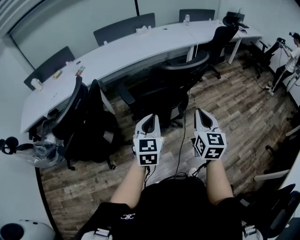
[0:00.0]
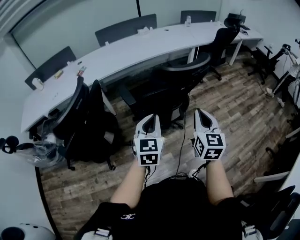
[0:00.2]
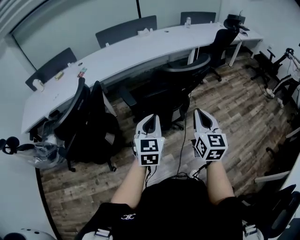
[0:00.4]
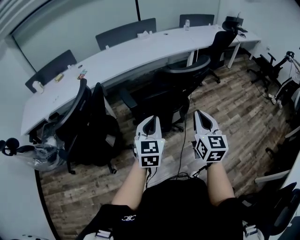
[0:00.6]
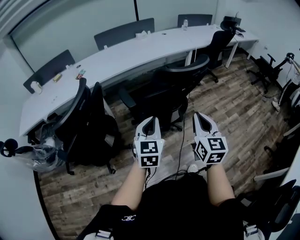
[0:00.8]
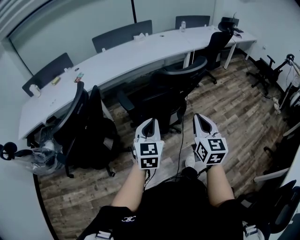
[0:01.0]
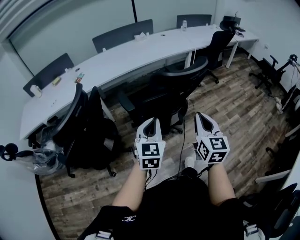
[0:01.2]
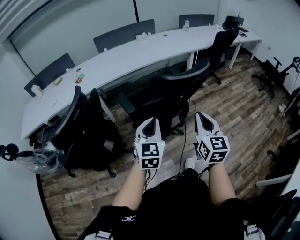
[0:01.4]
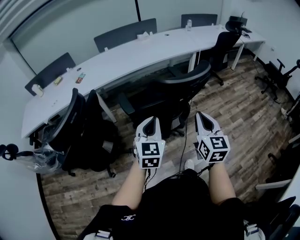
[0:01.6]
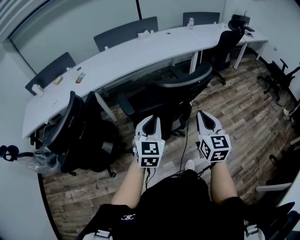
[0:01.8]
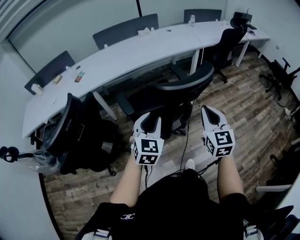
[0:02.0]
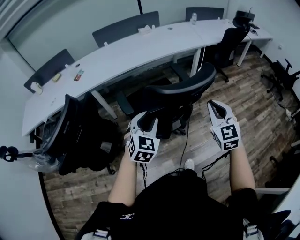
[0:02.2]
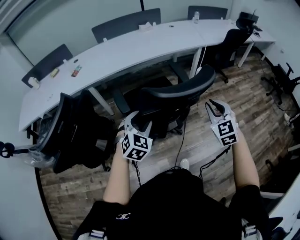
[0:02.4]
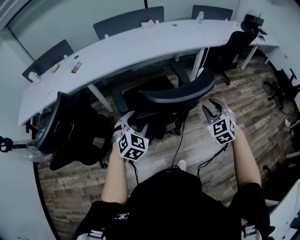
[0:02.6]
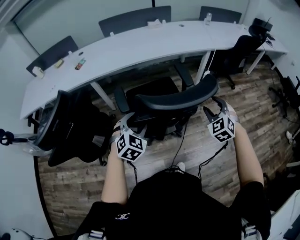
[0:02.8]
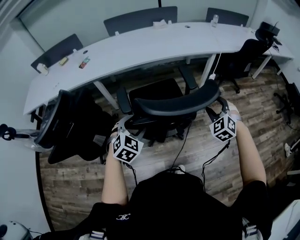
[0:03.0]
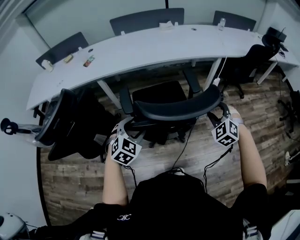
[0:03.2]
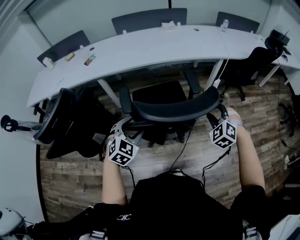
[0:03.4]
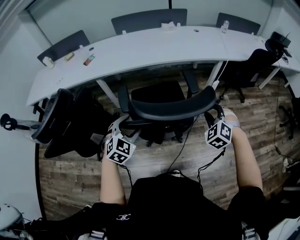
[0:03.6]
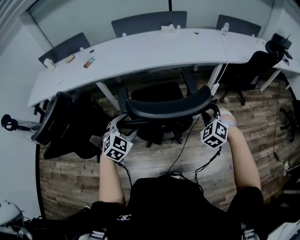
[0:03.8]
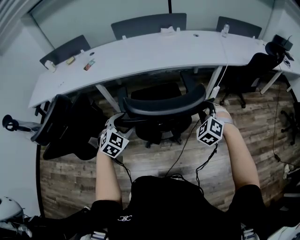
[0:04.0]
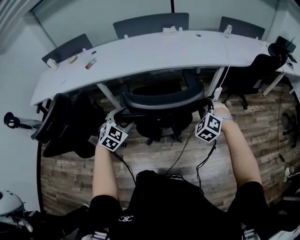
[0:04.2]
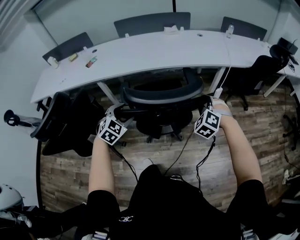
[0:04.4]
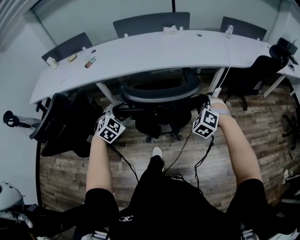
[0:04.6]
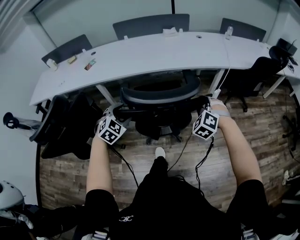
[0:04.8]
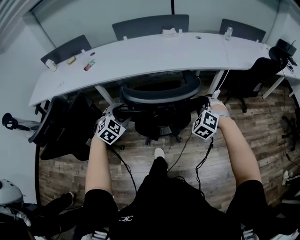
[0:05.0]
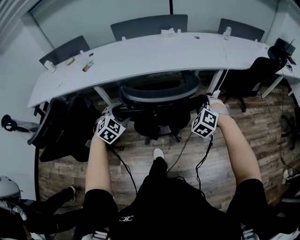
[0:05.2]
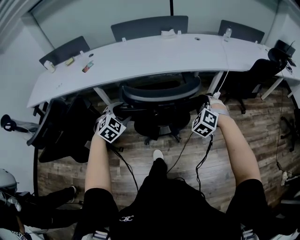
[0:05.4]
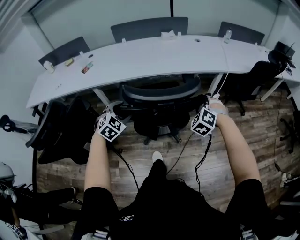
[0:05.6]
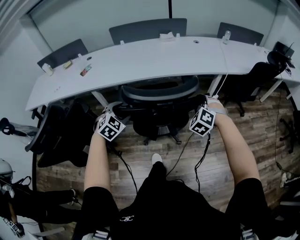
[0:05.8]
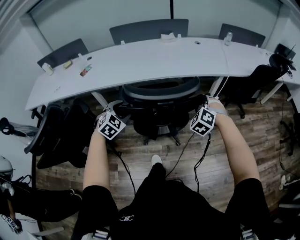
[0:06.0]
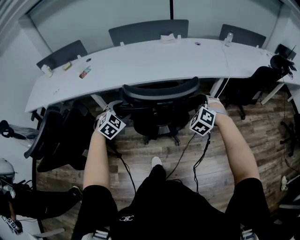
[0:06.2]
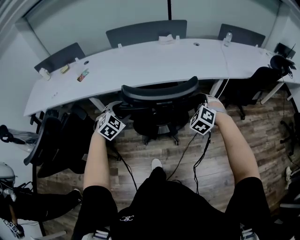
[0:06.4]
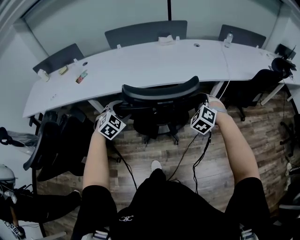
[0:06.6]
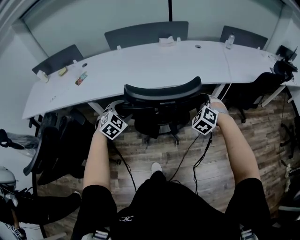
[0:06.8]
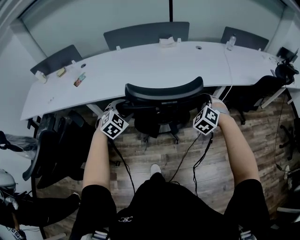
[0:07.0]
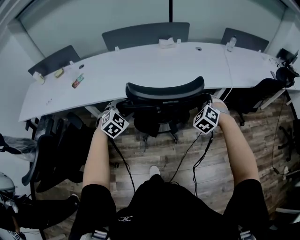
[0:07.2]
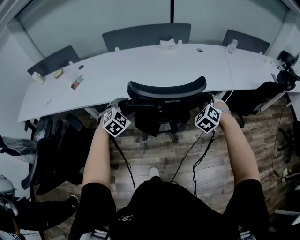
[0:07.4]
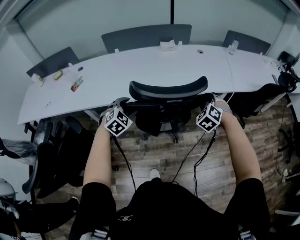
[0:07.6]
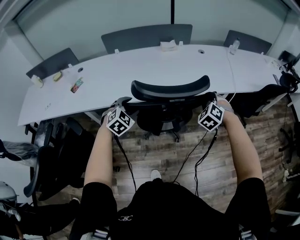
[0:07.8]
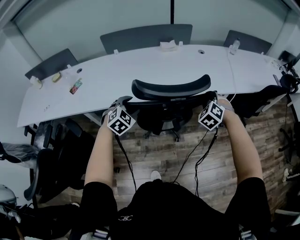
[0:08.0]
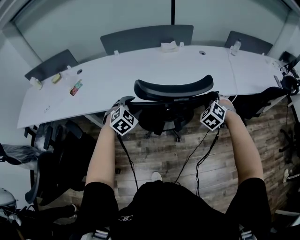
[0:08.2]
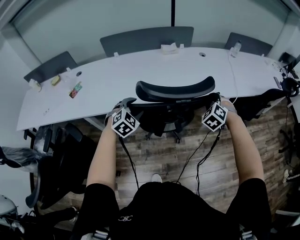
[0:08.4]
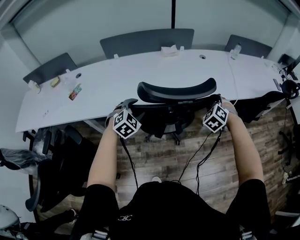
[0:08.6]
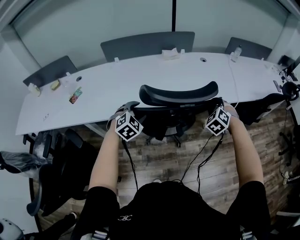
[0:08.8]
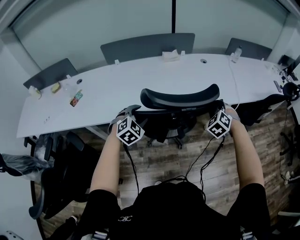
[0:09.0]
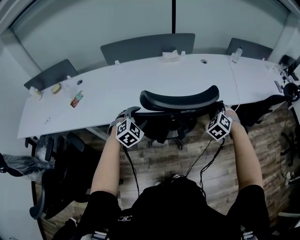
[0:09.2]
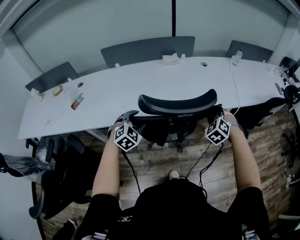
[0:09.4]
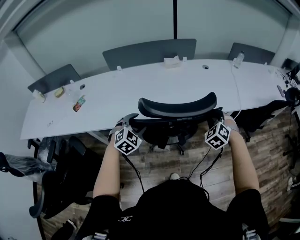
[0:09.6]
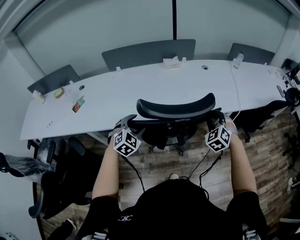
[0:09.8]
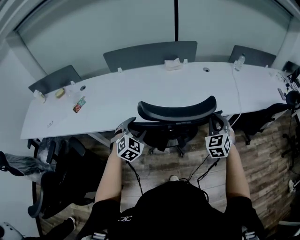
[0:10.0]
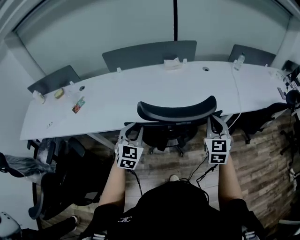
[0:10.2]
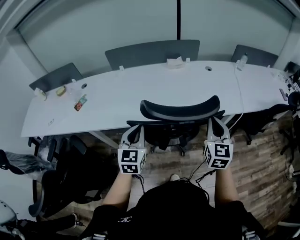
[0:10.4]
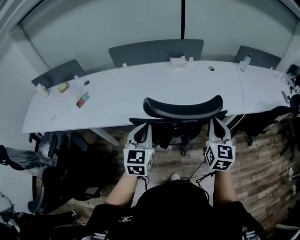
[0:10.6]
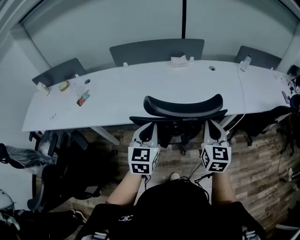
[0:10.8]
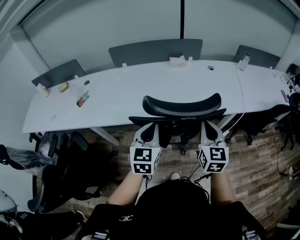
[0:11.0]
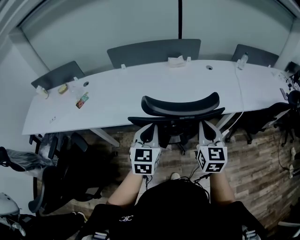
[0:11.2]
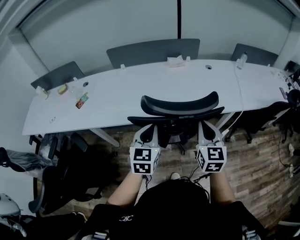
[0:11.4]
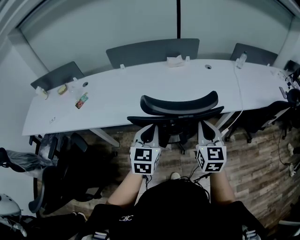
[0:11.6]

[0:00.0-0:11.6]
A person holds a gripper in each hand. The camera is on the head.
0:00.0 to 0:01.4: The grippers make only small movements.
0:01.4 to 0:02.8: The right gripper travels forward and to the right by some 30 cm, rolls counterclockwise, seen from behind, by approximately 50 degrees, and opens its fingers; the left gripper is displaced forward and downward by about 20 cm, changes its angle by roughly 30 degrees, and opens up.
0:02.8 to 0:04.4: The grippers both shift forward by roughly 15 cm. The right gripper changes its angle by roughly 20 degrees, and closes up.
0:04.4 to 0:05.8: The grippers both shift forward by some 10 cm.
0:05.8 to 0:07.2: Both grippers move forward, roughly 20 cm.
0:07.2 to 0:08.8: The grippers both shift forward by roughly 10 cm.
0:08.8 to 0:10.2: The left gripper travels upward by approximately 5 cm, turns by approximately 30 degrees, and closes, while the right gripper is displaced upward by some 10 cm, rolls clockwise, seen from behind, by about 40 degrees, and closes its fingers.
0:10.2 to 0:11.6: The left gripper moves to the right, some 5 cm, and closes its fingers, while the right gripper travels backward and to the left by approximately 10 cm.

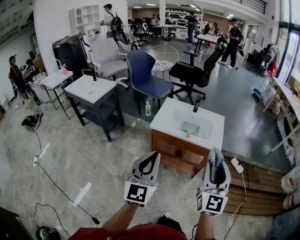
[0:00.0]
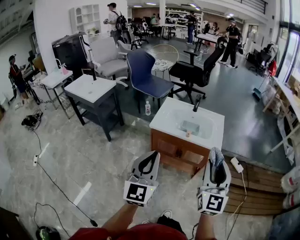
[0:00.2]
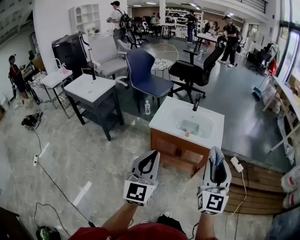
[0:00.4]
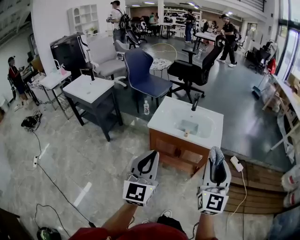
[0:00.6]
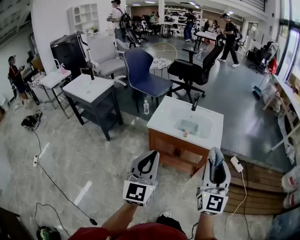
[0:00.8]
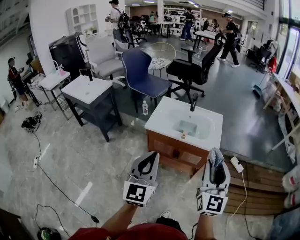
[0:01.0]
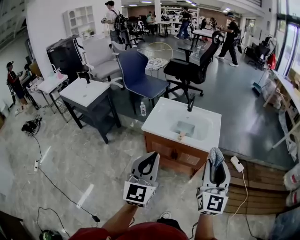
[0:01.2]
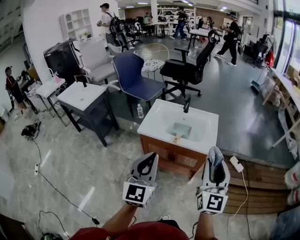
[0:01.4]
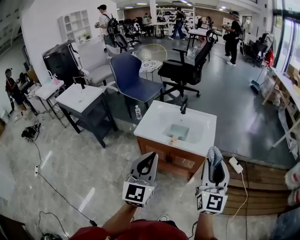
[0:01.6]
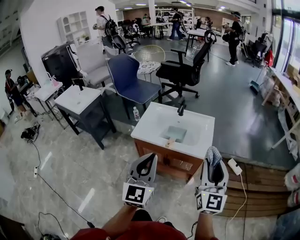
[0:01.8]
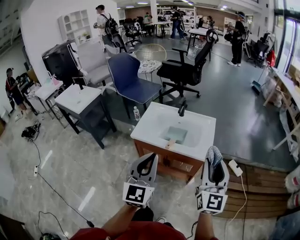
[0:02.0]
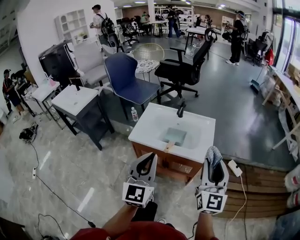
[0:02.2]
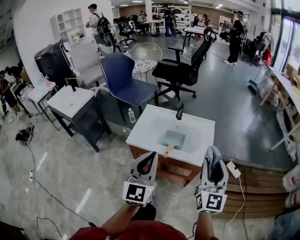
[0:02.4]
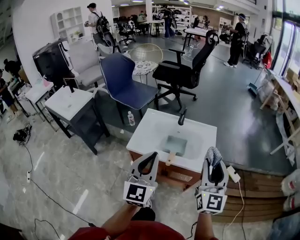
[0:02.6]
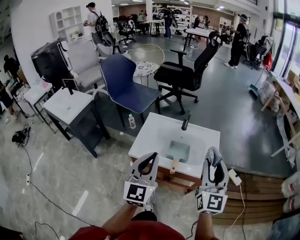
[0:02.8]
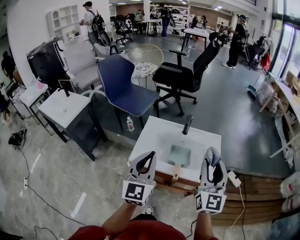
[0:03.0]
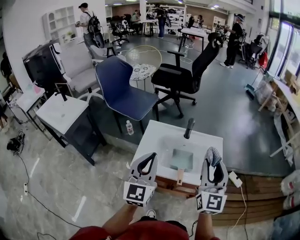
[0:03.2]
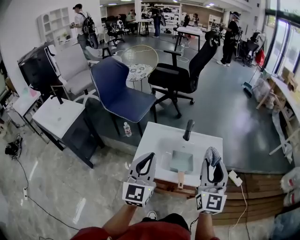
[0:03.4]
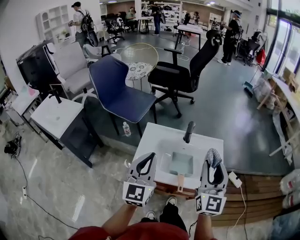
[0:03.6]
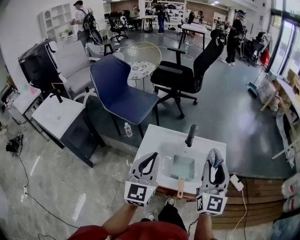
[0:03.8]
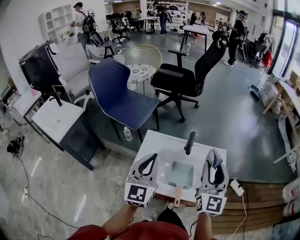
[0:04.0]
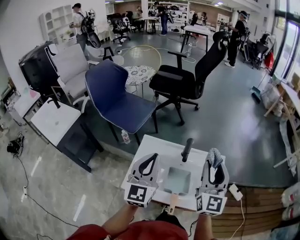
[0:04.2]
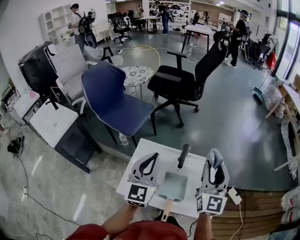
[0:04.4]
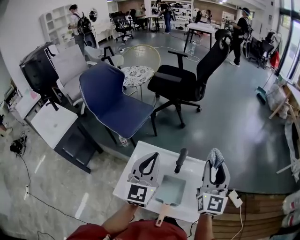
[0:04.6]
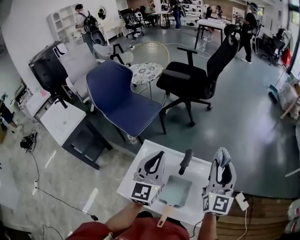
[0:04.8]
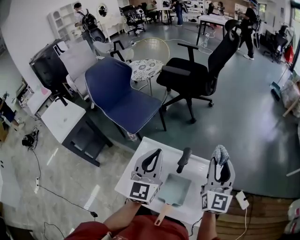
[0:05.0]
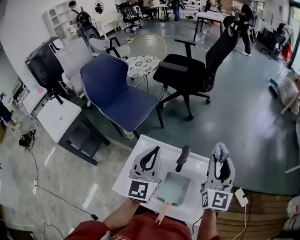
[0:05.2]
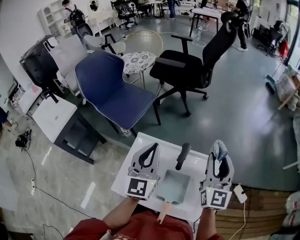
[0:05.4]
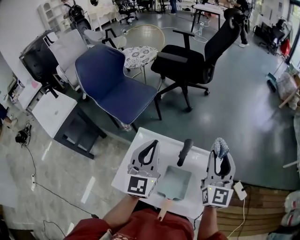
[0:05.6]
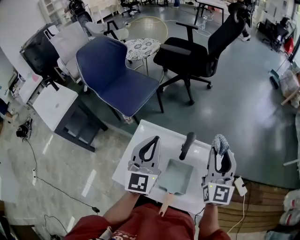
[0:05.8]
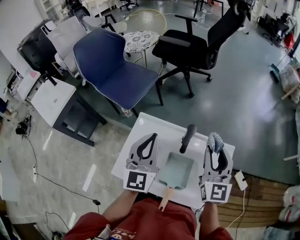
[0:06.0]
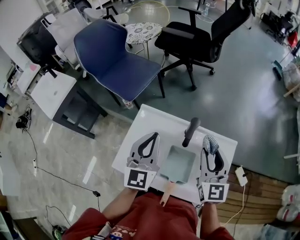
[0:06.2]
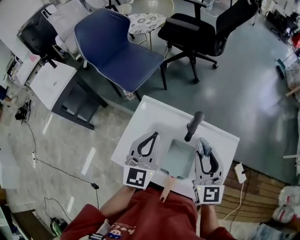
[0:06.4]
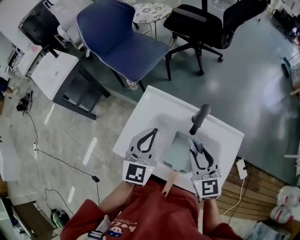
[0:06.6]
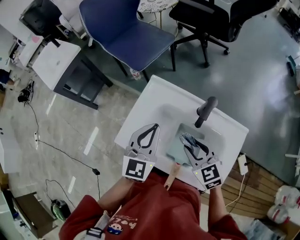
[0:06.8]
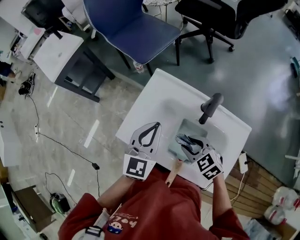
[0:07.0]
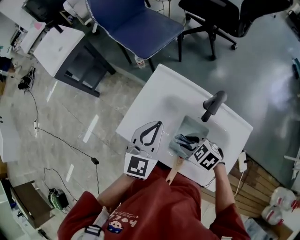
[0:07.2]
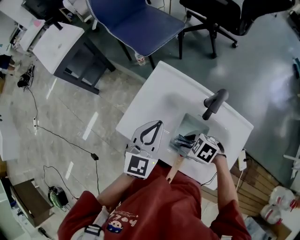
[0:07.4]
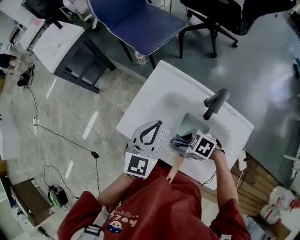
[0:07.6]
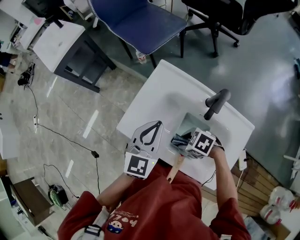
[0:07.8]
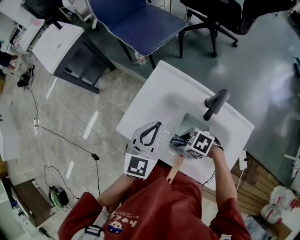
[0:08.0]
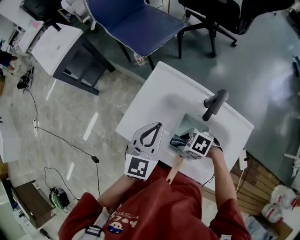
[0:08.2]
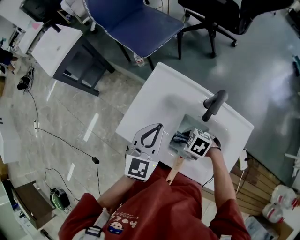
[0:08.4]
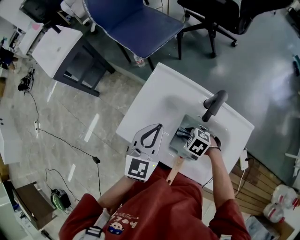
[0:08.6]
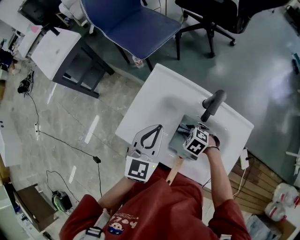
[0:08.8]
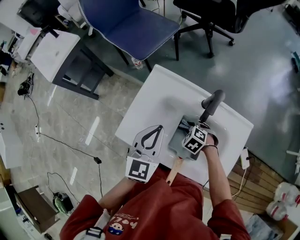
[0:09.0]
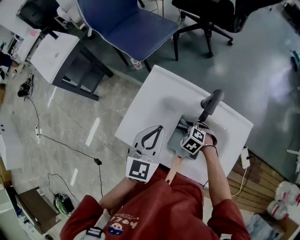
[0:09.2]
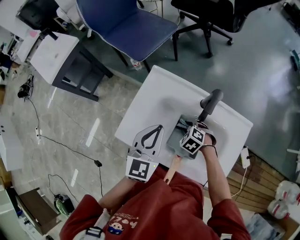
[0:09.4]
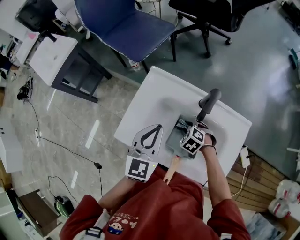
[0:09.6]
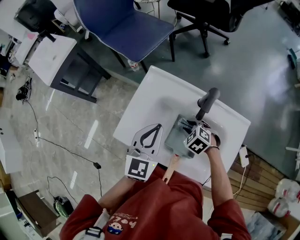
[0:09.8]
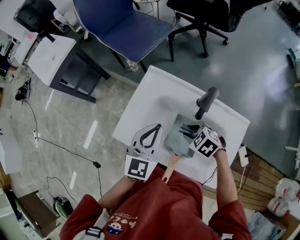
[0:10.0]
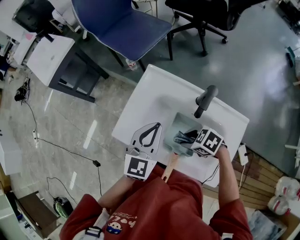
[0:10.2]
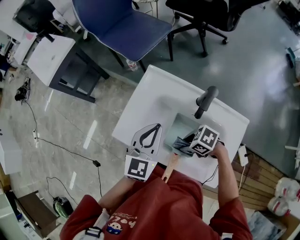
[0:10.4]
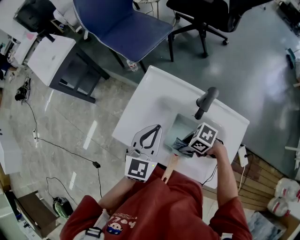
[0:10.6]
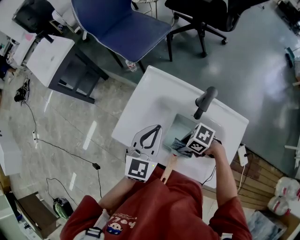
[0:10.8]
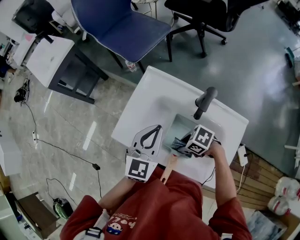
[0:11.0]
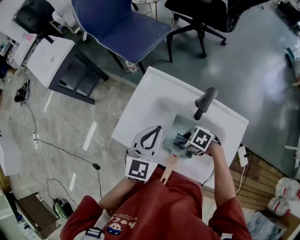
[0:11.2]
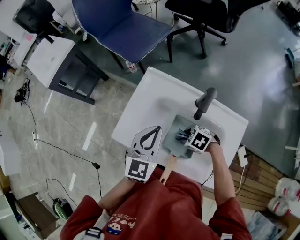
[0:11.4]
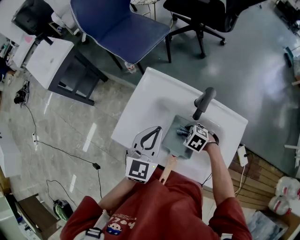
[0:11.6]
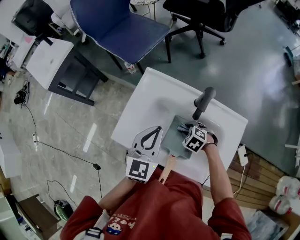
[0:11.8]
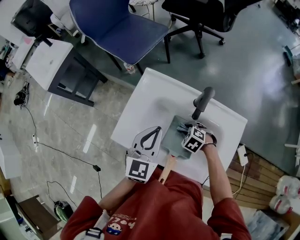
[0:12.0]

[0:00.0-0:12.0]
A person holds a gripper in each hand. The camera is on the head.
0:00.0 to 0:01.6: The grippers both shift forward and to the right by approximately 15 cm.
0:01.6 to 0:03.0: Both grippers move forward and to the left, about 25 cm.
0:03.0 to 0:04.4: Both grippers move forward, roughly 25 cm.
0:04.4 to 0:06.0: The grippers both shift downward and forward by approximately 10 cm.
0:06.0 to 0:07.6: The right gripper is displaced downward by approximately 30 cm, and tips its fingers downward by approximately 60 degrees. The left gripper goes about 15 cm downward.
0:07.6 to 0:09.0: The right gripper shifts by roughly 10 cm, and turns by about 30 degrees.
0:09.0 to 0:10.4: The right gripper ends up approximately 10 cm from where it was, and turns by roughly 40 degrees.
0:10.4 to 0:12.0: The right gripper ends up some 10 cm from where it was, and swivels roughly 40 degrees.
